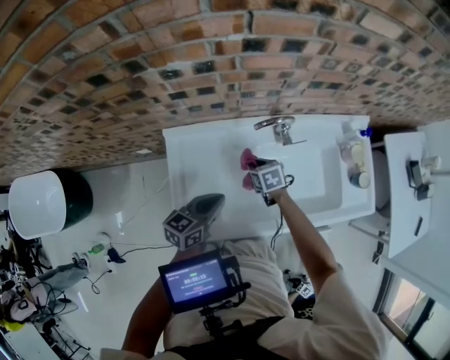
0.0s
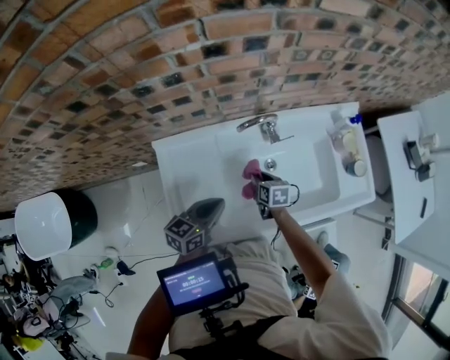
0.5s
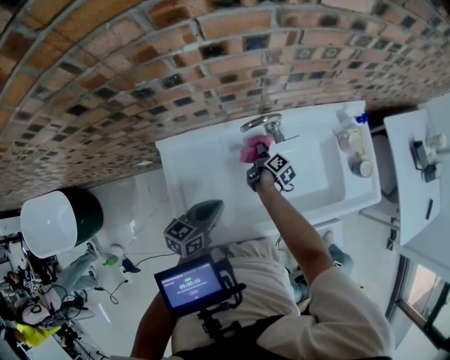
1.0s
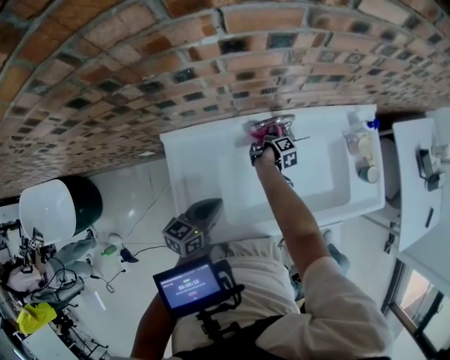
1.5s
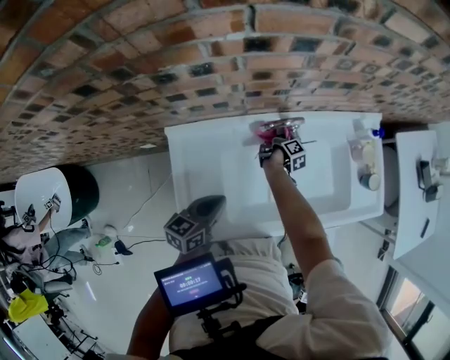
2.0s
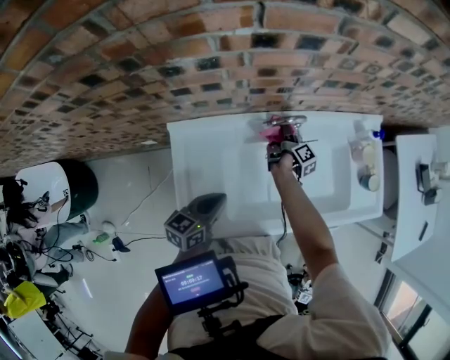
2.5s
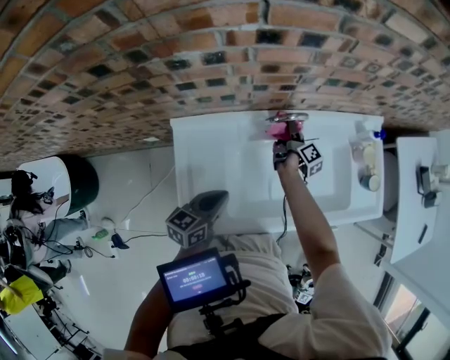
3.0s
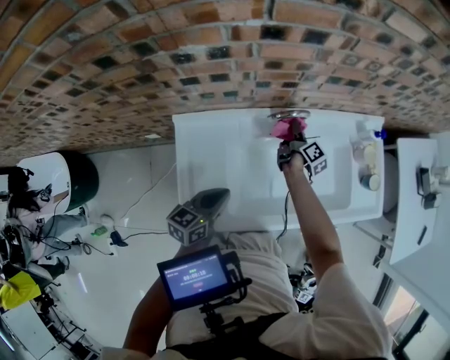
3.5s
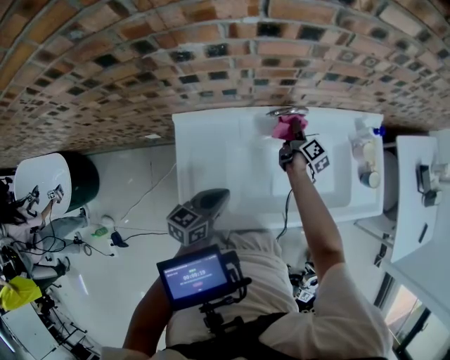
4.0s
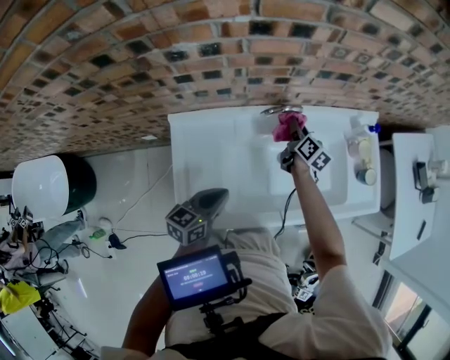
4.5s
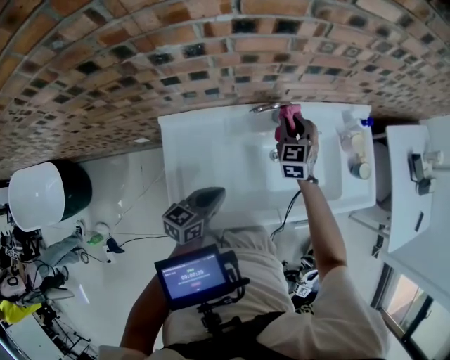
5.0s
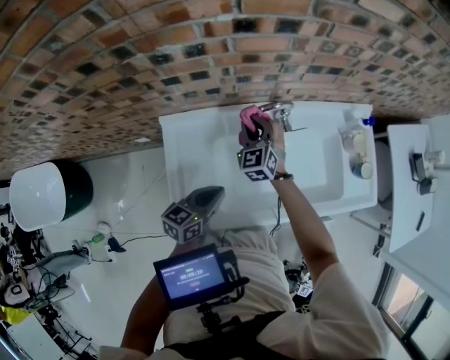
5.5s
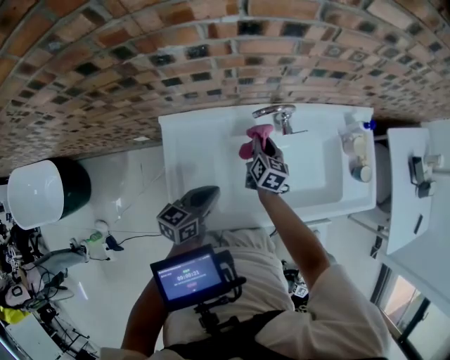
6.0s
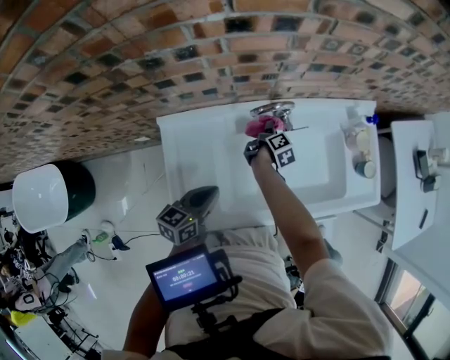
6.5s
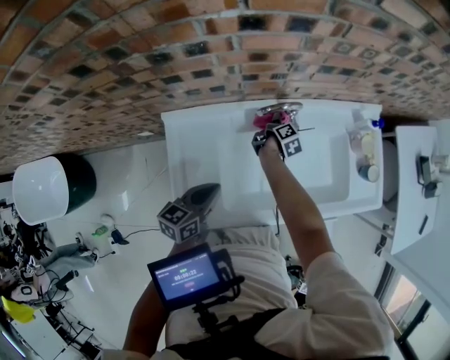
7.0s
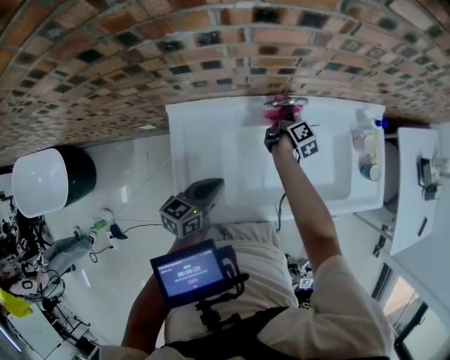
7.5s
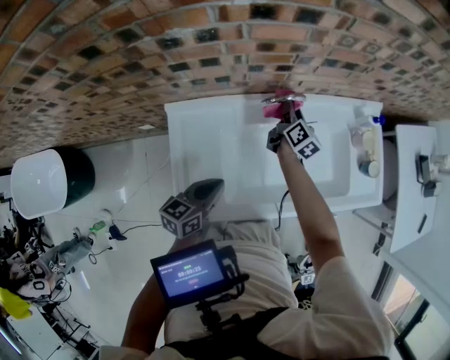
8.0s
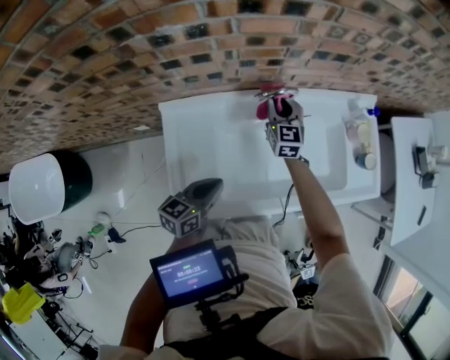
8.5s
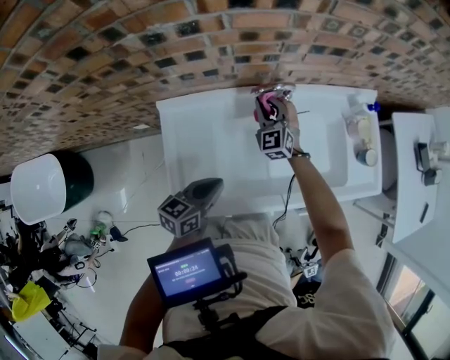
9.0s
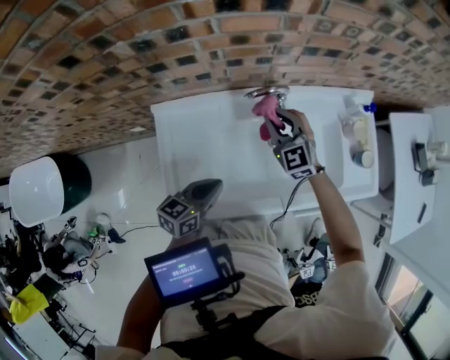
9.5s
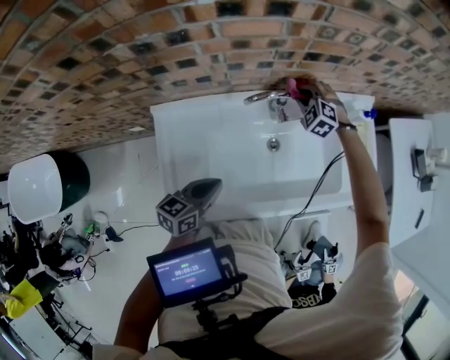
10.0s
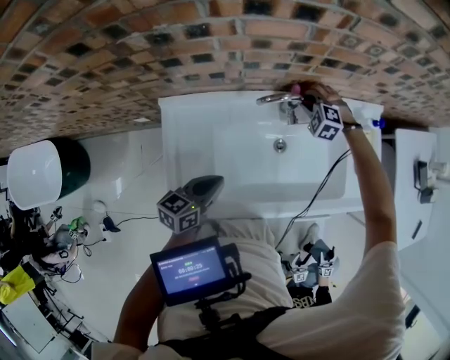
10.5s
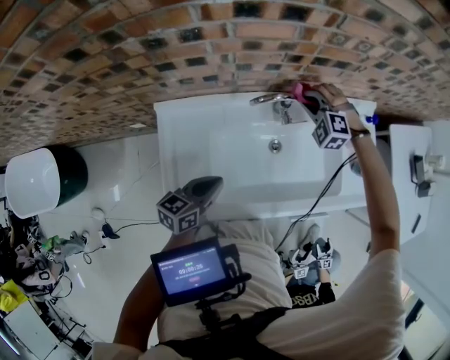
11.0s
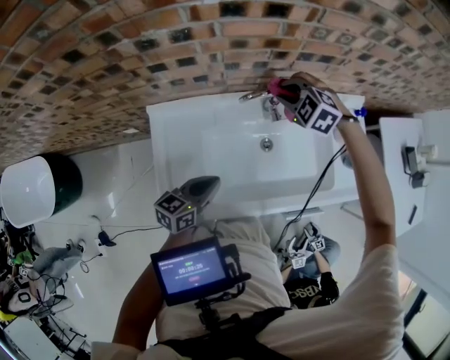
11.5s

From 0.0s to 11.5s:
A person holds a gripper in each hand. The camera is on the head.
From 0.0s to 2.0s: The right gripper ends up approximately 20 cm from where it was, and twists roughly 90 degrees clockwise, seen from behind.
From 2.0s to 4.0s: The right gripper goes about 10 cm upward, and swivels about 30 degrees.
From 4.0s to 6.0s: The right gripper heads backward and to the left, covering roughly 10 cm, and rotates some 40 degrees.
From 6.0s to 7.5s: The right gripper goes roughly 10 cm forward, and rotates about 40 degrees.
From 7.5s to 9.5s: The right gripper heads upward and backward, covering approximately 15 cm, and rotates around the line of its fingers by some 90 degrees, counterclockwise from behind.
From 9.5s to 11.5s: The right gripper heads forward, covering roughly 5 cm, goes downward and returns, some 10 cm each way, and angles its fingers downward, by some 40 degrees.

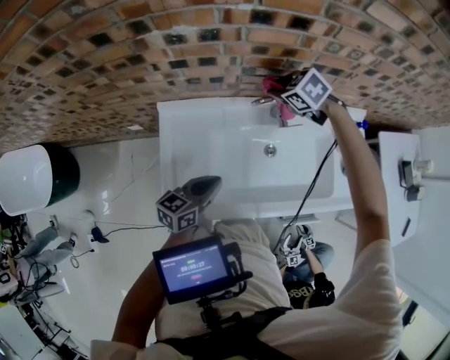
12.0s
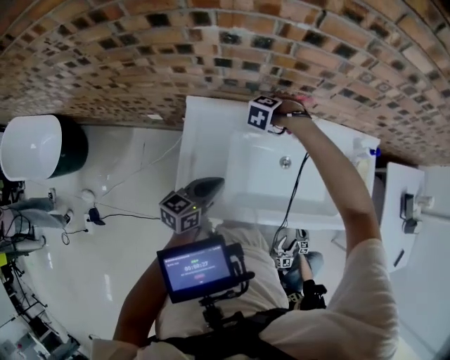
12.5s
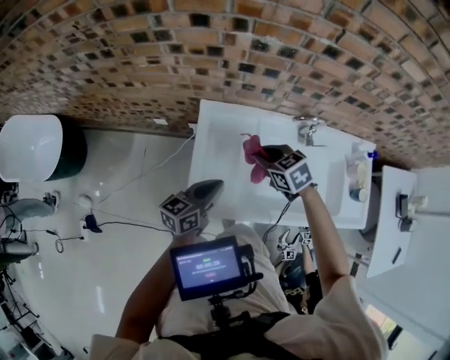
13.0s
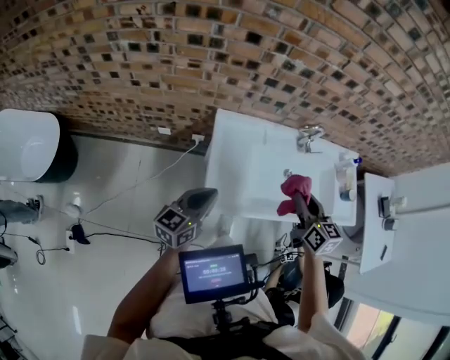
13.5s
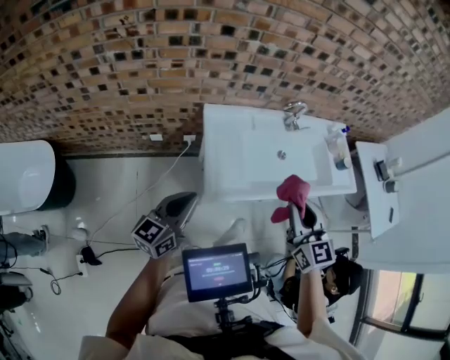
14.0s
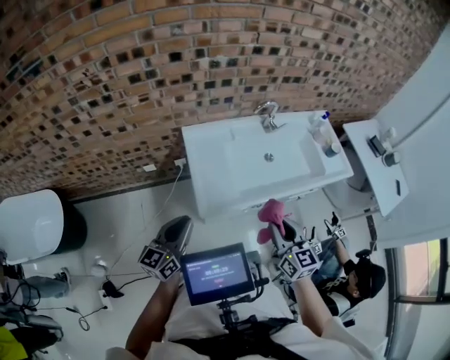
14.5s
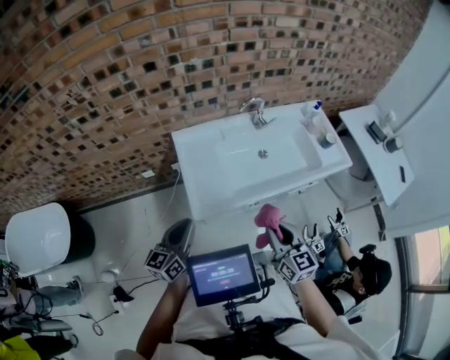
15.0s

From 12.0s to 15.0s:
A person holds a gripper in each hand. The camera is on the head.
From 12.0s to 13.5s: The left gripper ends up about 30 cm from where it was, and swivels approximately 20 degrees, while the right gripper changes place by some 40 cm, and angles its fingers upward, by approximately 40 degrees.
From 13.5s to 15.0s: The left gripper travels backward by about 10 cm, while the right gripper travels backward by some 20 cm.

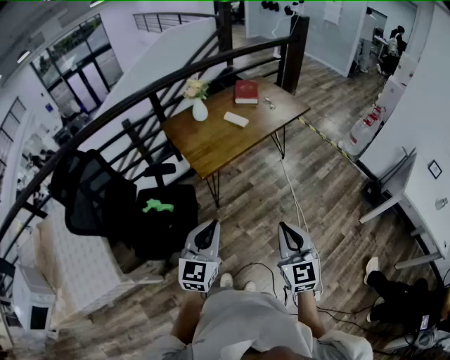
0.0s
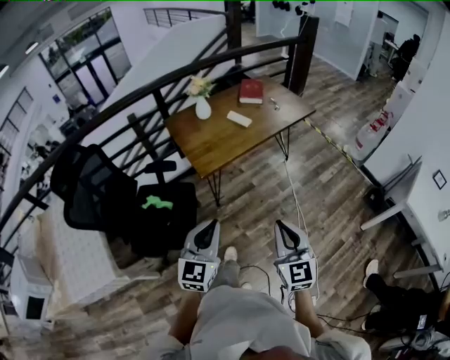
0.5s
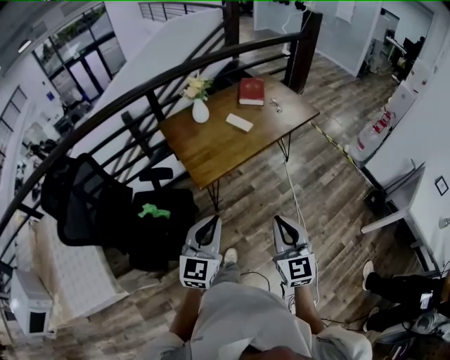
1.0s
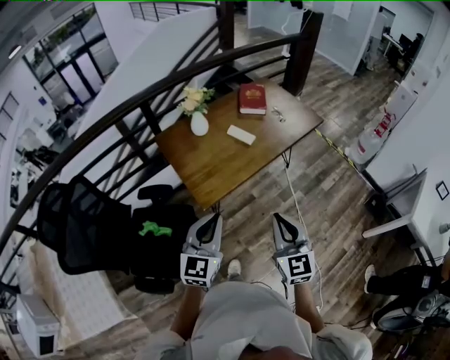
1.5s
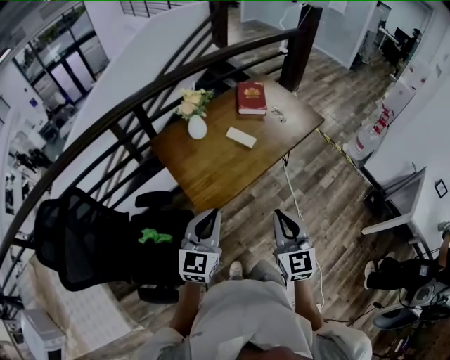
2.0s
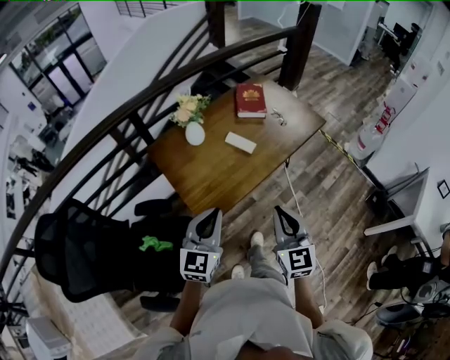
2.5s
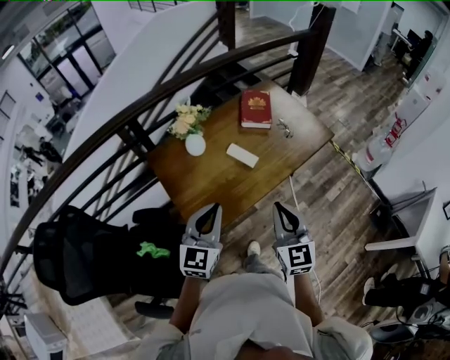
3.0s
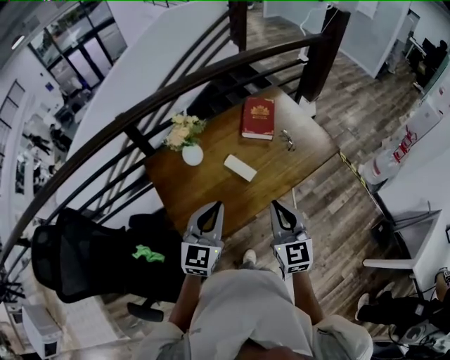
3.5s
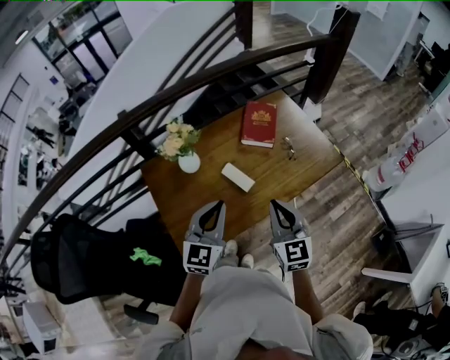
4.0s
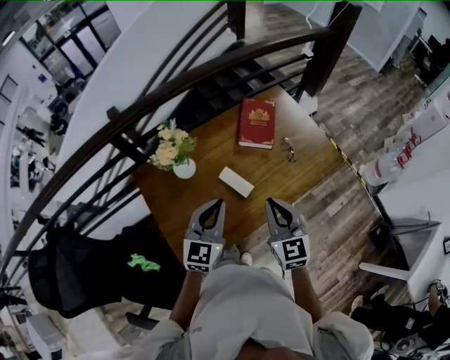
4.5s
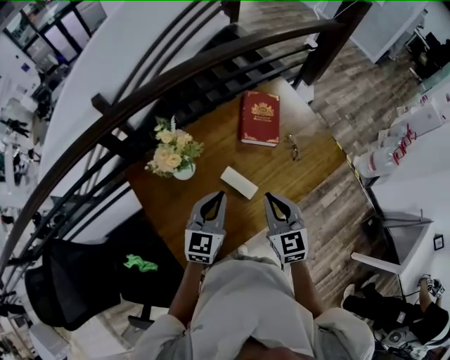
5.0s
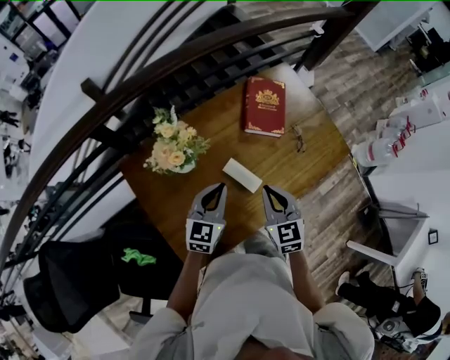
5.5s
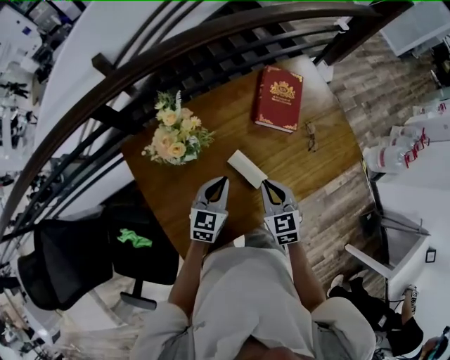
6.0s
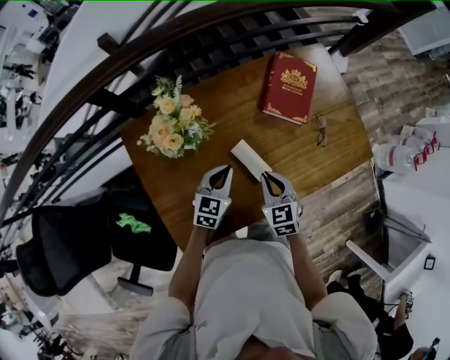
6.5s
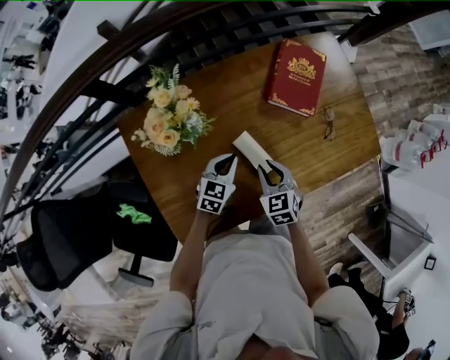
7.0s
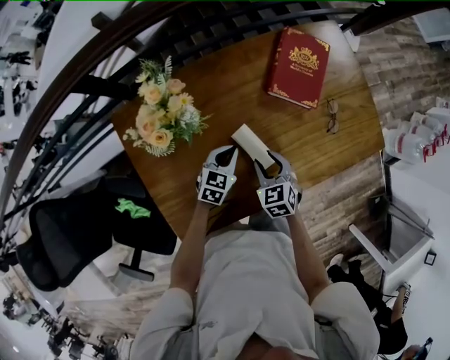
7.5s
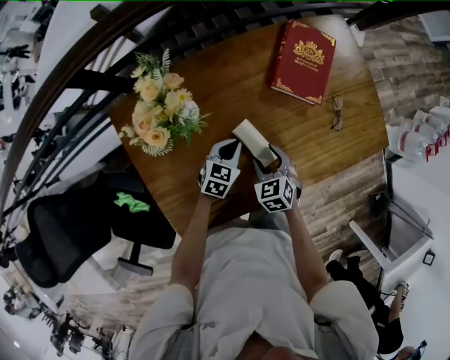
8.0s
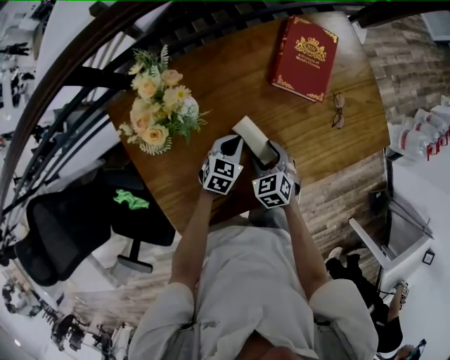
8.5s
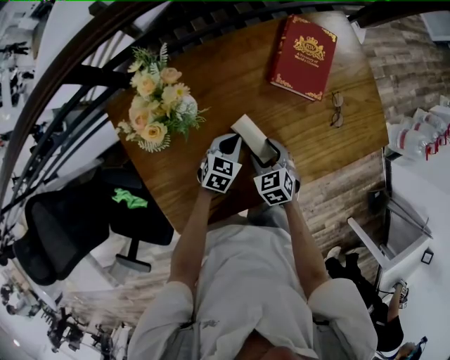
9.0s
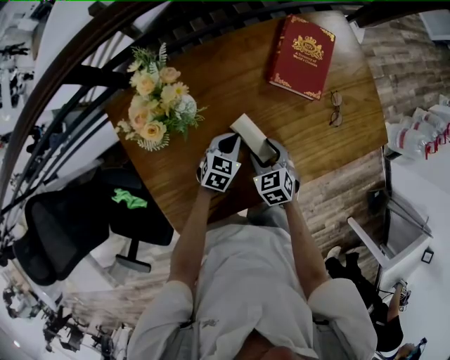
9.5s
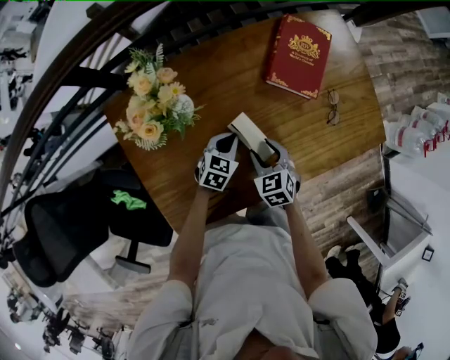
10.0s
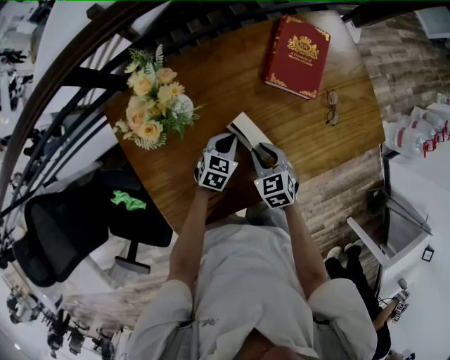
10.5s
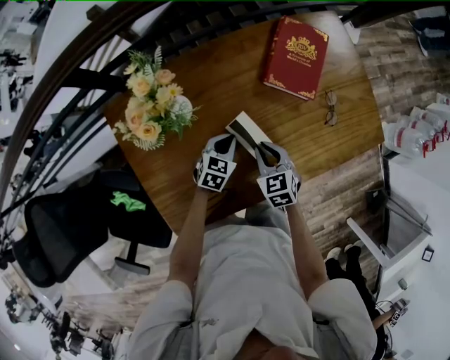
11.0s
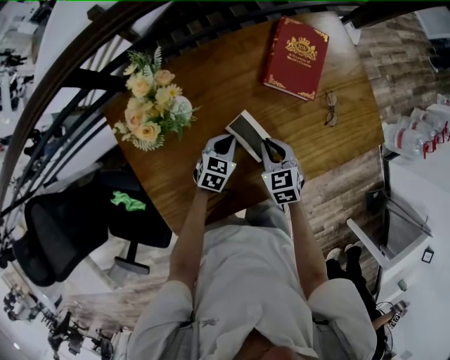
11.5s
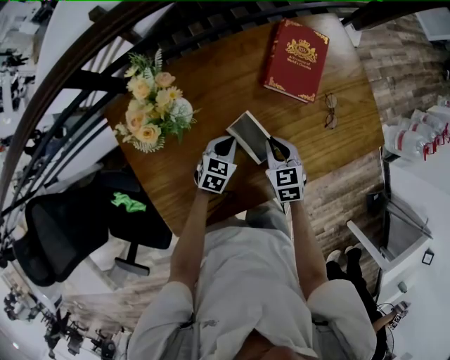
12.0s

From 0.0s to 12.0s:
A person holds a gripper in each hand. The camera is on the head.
From 0.0s to 2.0s: The grippers both shift forward by some 30 cm.
From 2.0s to 4.0s: The grippers both shift forward by about 30 cm.
From 4.0s to 6.0s: The right gripper shifts some 25 cm downward, forward and to the left, and swivels about 30 degrees, while the left gripper travels downward and forward by some 25 cm, and turns by roughly 20 degrees.
From 6.0s to 8.0s: Both grippers move downward, some 15 cm. The right gripper changes its angle by some 20 degrees, and opens its fingers.
From 8.0s to 10.0s: The grippers stay close to where they were, moving slightly.
From 10.0s to 12.0s: The right gripper changes place by about 5 cm, and closes.
